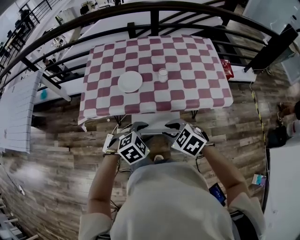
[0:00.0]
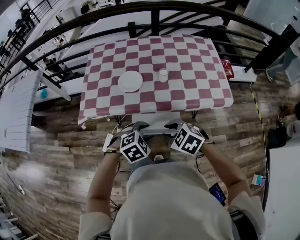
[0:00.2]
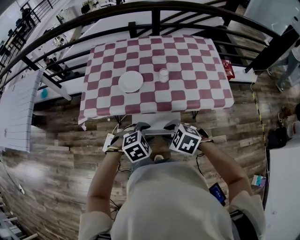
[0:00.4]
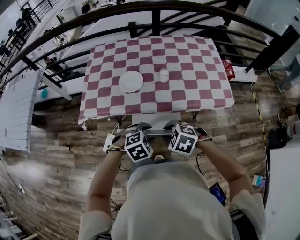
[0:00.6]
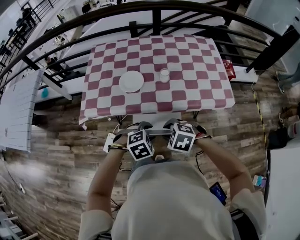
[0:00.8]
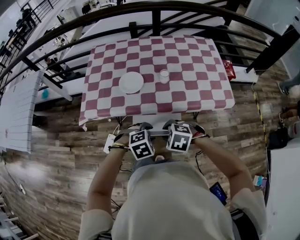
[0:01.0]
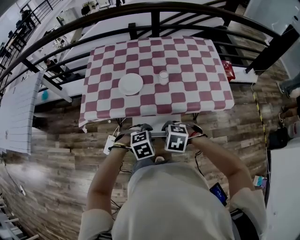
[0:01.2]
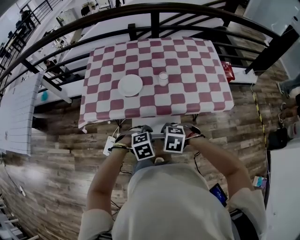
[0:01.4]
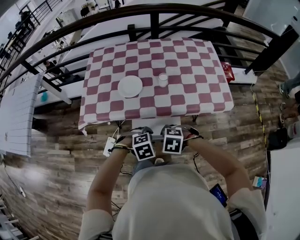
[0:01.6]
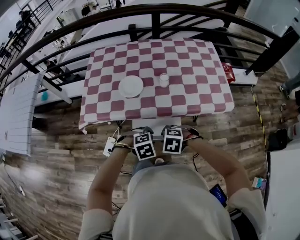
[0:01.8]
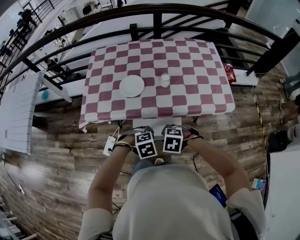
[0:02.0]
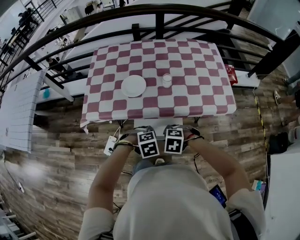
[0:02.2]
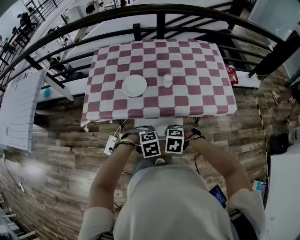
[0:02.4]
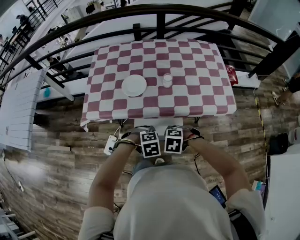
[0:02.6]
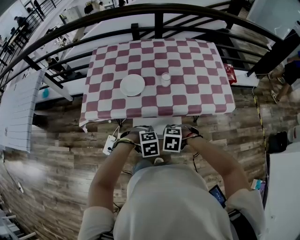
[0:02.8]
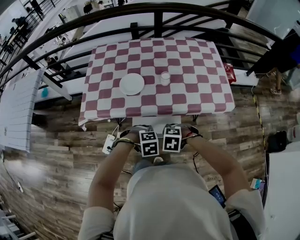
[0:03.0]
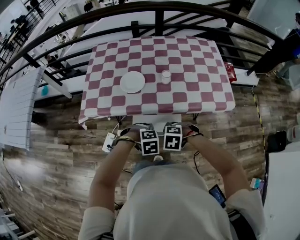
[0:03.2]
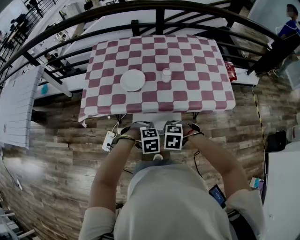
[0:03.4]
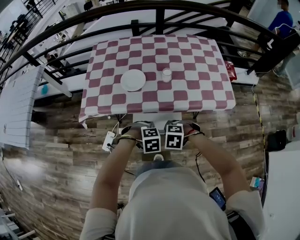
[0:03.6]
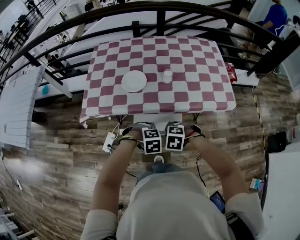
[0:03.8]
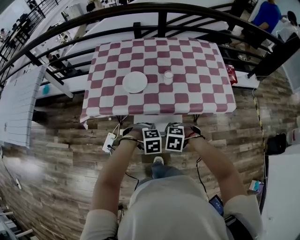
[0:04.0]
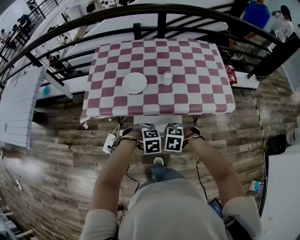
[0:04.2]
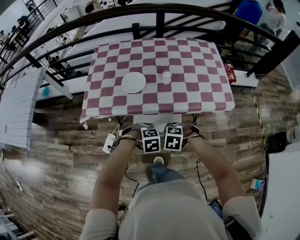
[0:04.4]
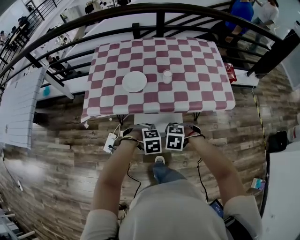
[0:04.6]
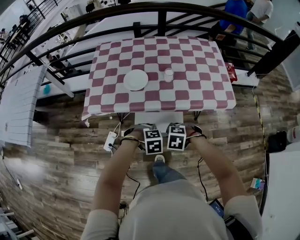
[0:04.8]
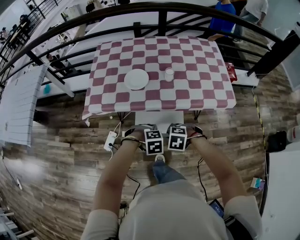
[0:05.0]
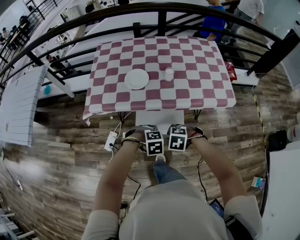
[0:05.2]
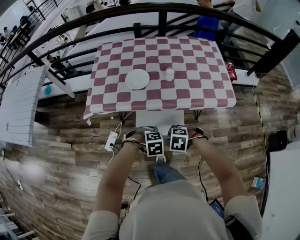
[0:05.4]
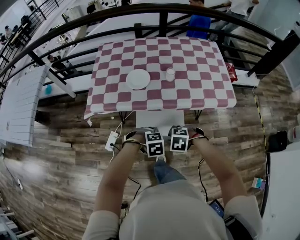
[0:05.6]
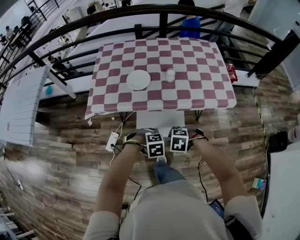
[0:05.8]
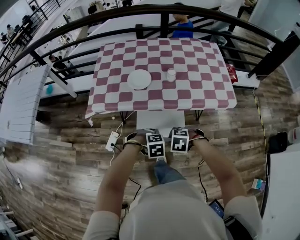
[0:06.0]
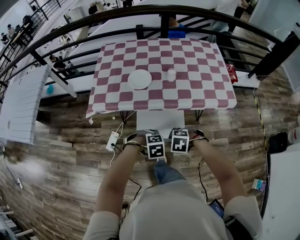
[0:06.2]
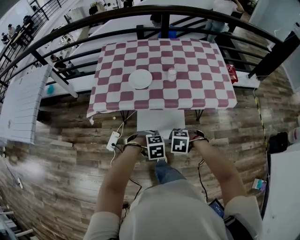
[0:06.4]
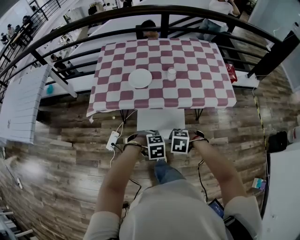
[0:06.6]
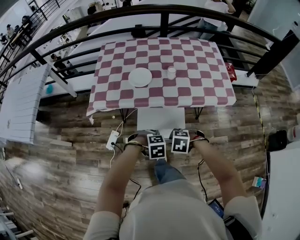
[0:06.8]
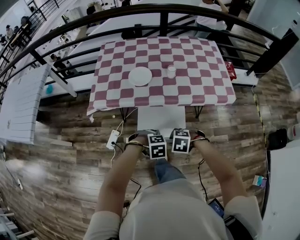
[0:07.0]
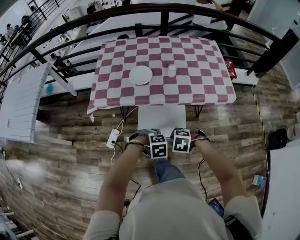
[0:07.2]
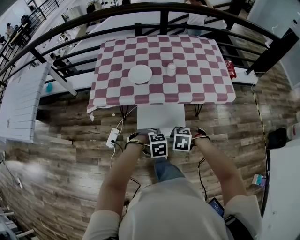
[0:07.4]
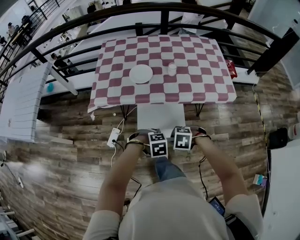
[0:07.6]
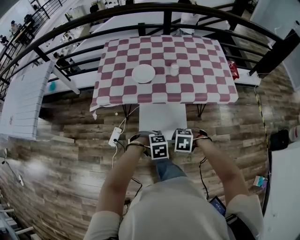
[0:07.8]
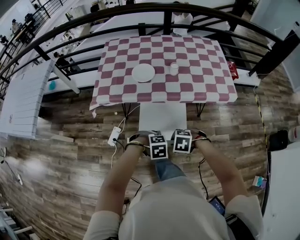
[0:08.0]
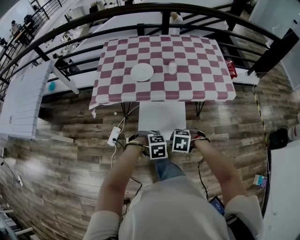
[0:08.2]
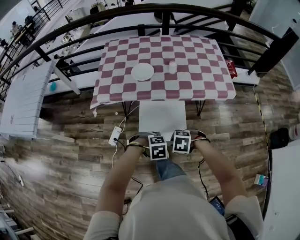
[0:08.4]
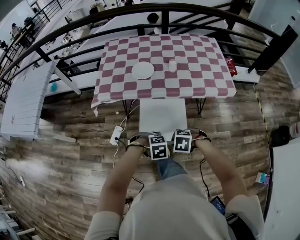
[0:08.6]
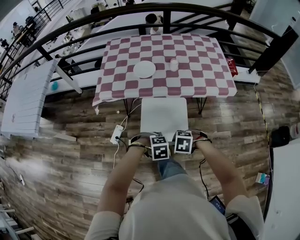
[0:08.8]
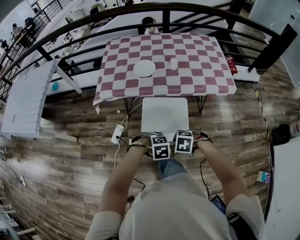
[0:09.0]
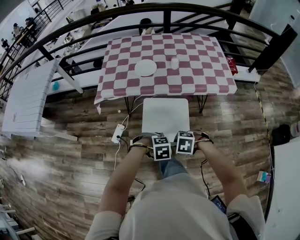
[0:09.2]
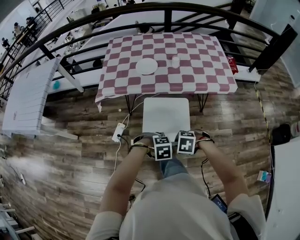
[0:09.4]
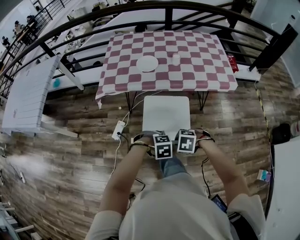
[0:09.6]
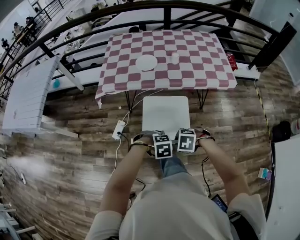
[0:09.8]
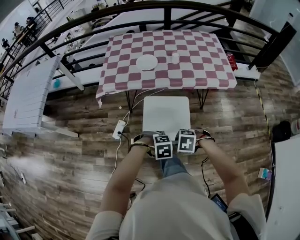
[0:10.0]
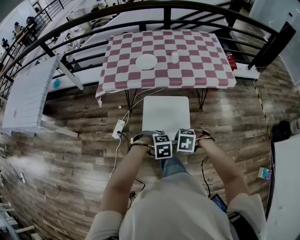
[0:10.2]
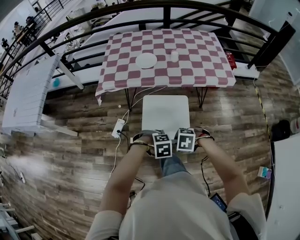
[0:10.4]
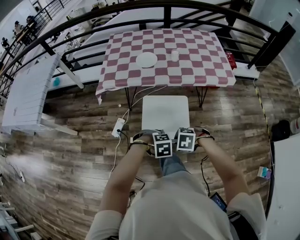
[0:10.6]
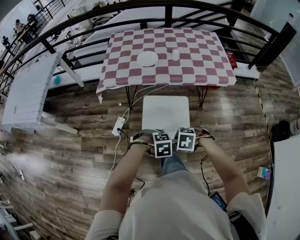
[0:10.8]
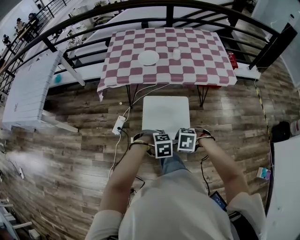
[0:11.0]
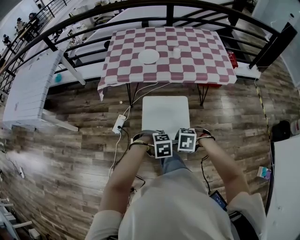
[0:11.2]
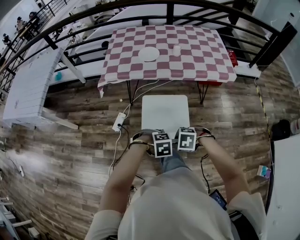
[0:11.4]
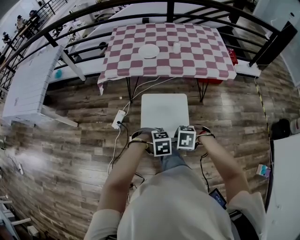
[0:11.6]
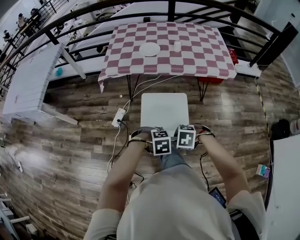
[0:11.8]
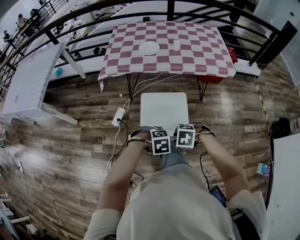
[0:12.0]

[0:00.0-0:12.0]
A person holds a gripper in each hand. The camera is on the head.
0:00.0 to 0:01.6: The grippers both shift downward by approximately 10 cm. The right gripper swivels roughly 30 degrees.
0:01.6 to 0:03.0: The left gripper closes its fingers.
0:03.0 to 0:04.4: The two grippers keep their place.
0:04.4 to 0:06.0: The left gripper shifts by some 5 cm; the right gripper shifts by about 5 cm.
0:06.0 to 0:07.6: The grippers make only small movements.
0:07.6 to 0:09.0: The left gripper moves about 10 cm. Meanwhile the right gripper shifts by roughly 10 cm.
0:09.0 to 0:10.4: The right gripper moves approximately 5 cm, while the left gripper ends up approximately 5 cm from where it was.
0:10.4 to 0:12.0: The right gripper ends up about 10 cm from where it was; the left gripper shifts by about 10 cm.

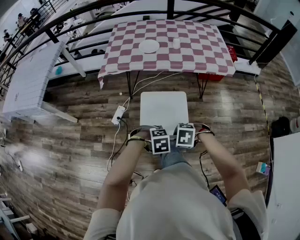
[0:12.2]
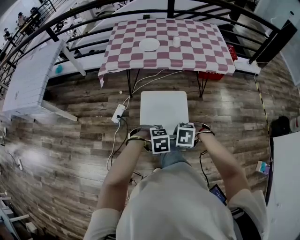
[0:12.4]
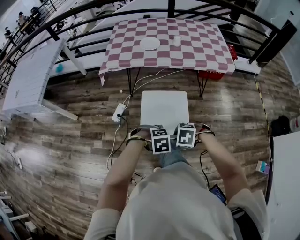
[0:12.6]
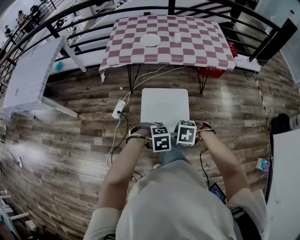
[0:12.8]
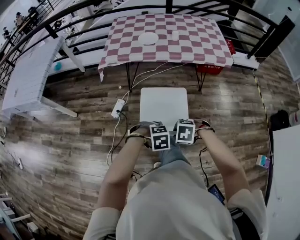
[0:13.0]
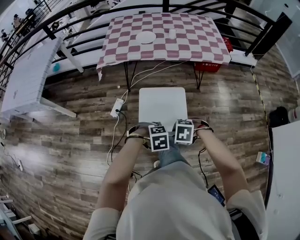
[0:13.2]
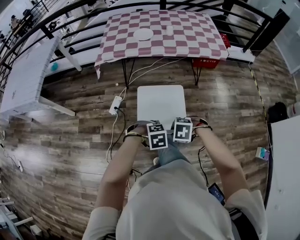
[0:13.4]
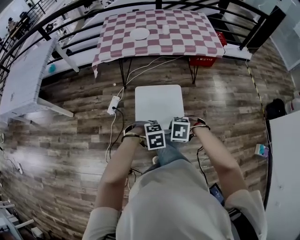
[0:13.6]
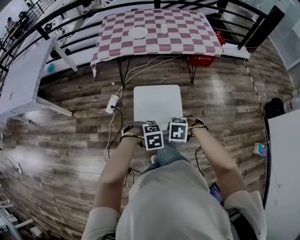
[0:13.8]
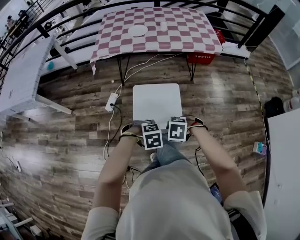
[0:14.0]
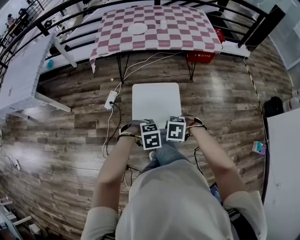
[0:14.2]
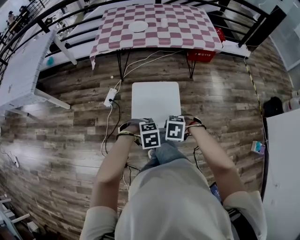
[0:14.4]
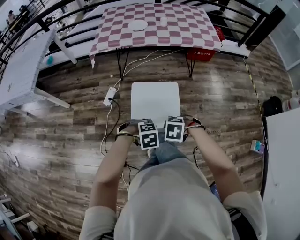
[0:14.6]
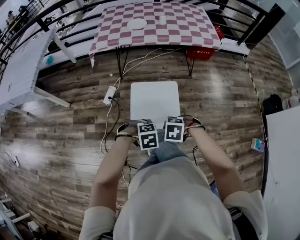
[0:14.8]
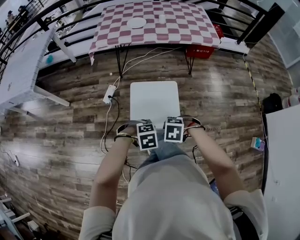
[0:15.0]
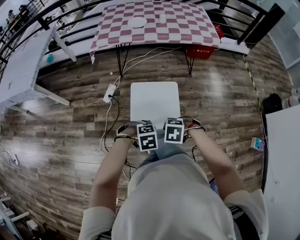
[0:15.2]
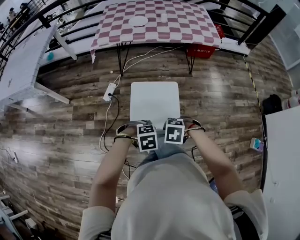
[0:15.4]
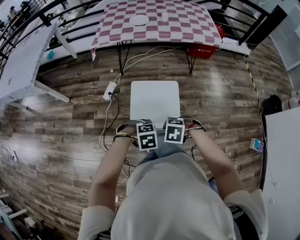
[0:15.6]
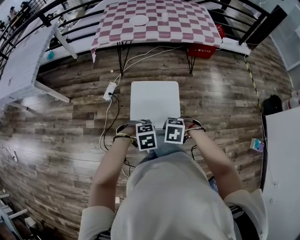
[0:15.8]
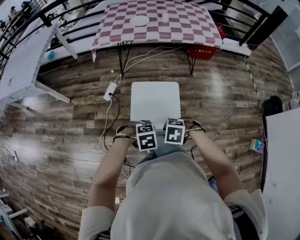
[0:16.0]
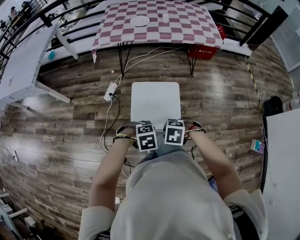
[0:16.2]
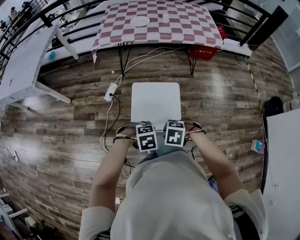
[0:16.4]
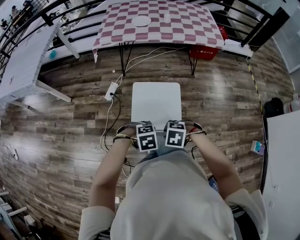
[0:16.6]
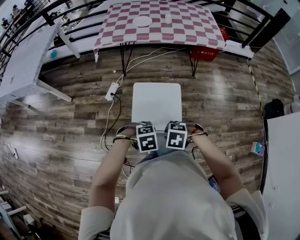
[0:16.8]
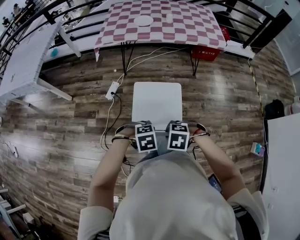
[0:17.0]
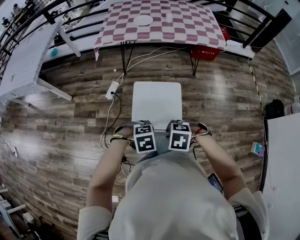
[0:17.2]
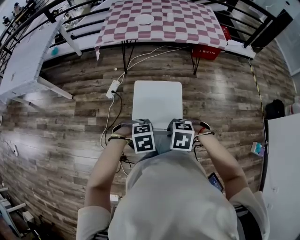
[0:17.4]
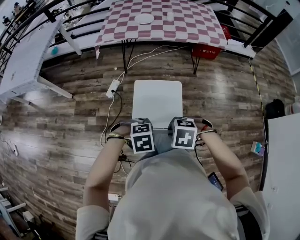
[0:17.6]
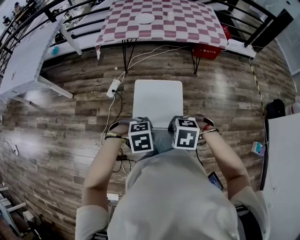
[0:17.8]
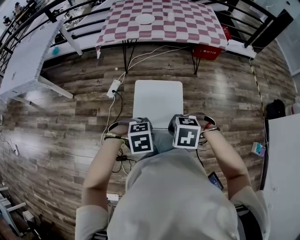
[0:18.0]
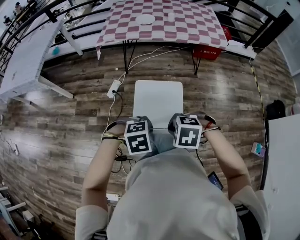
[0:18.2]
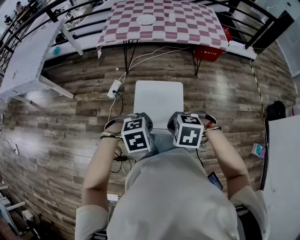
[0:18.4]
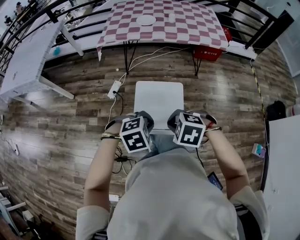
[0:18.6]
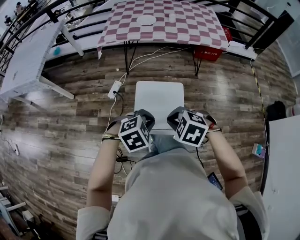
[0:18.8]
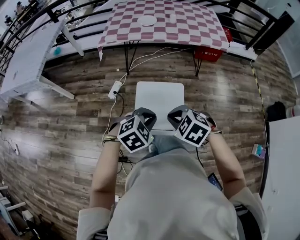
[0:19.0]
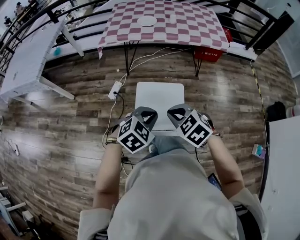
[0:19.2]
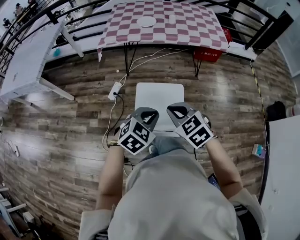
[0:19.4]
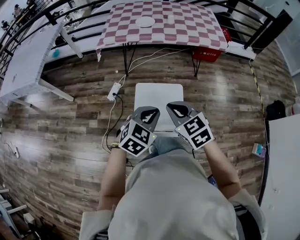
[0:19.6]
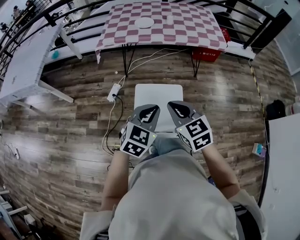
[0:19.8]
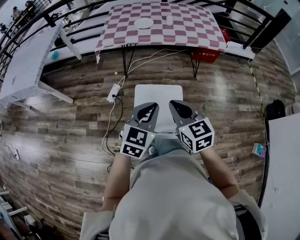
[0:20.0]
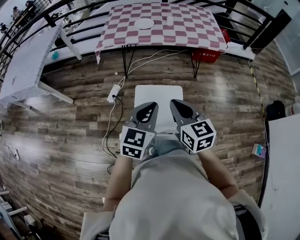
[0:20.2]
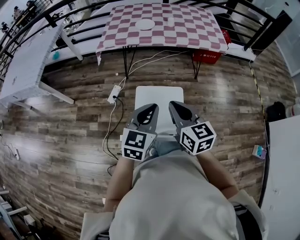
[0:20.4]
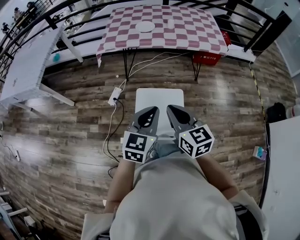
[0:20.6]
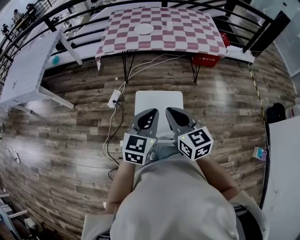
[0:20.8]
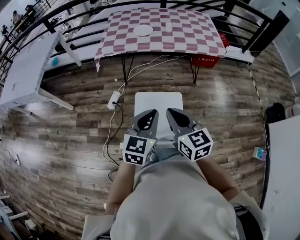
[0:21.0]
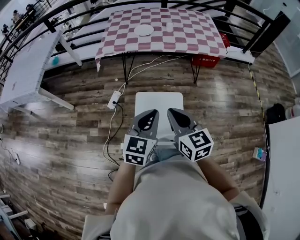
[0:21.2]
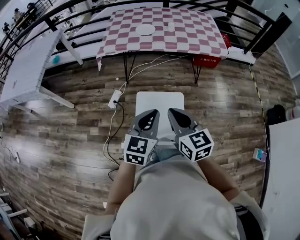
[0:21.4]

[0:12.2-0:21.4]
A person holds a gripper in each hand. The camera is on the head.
0:12.2 to 0:13.8: The right gripper moves about 10 cm. Meanwhile the left gripper shifts by approximately 10 cm.
0:13.8 to 0:15.2: The left gripper moves roughly 10 cm. The right gripper shifts by some 10 cm.
0:15.2 to 0:16.8: The two grippers keep their place.
0:16.8 to 0:18.4: The grippers both shift upward by some 10 cm. The right gripper closes.
0:18.4 to 0:19.8: The right gripper shifts by approximately 10 cm, and tilts its fingers roughly 40 degrees upward; the left gripper ends up roughly 10 cm from where it was, and tips its fingers upward by roughly 40 degrees.

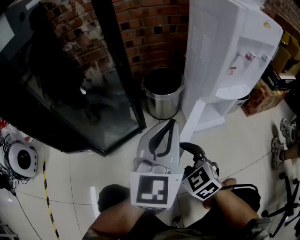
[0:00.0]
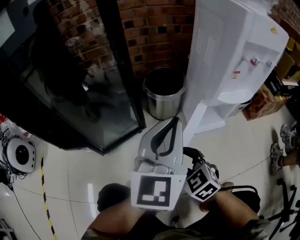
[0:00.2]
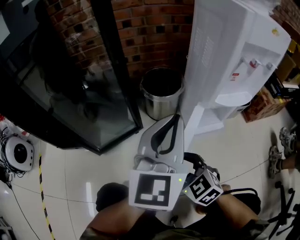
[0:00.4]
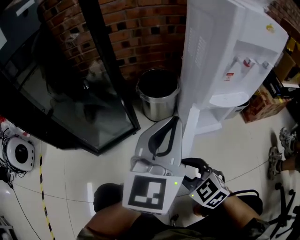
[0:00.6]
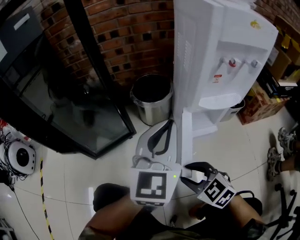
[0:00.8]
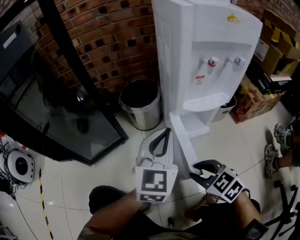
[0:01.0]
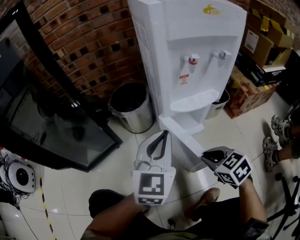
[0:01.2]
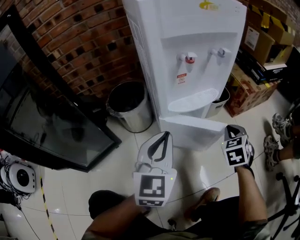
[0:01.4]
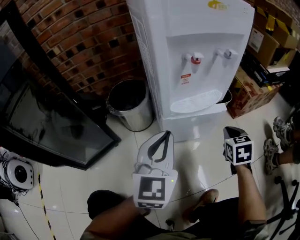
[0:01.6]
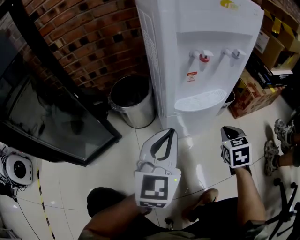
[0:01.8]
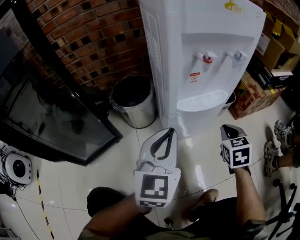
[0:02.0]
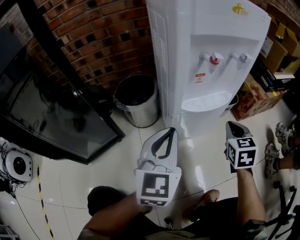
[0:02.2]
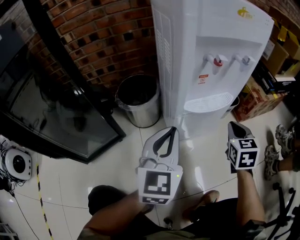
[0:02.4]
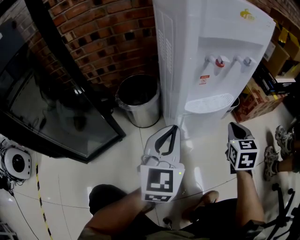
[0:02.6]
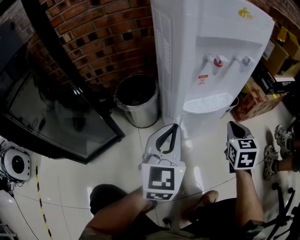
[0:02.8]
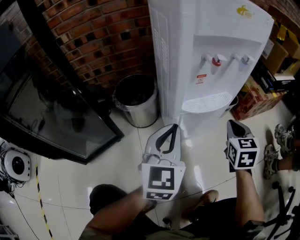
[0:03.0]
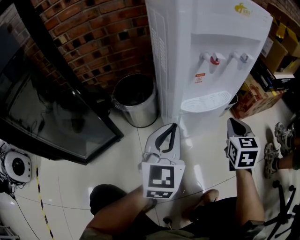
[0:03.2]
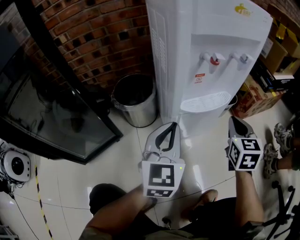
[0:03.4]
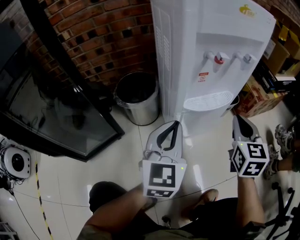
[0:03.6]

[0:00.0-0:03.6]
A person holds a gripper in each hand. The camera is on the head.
0:00.0 to 0:01.8: The left gripper ends up some 20 cm from where it was, while the right gripper changes place by about 40 cm, rotates some 40 degrees, and closes its fingers.
0:01.8 to 0:03.6: The right gripper shifts some 10 cm upward, and swivels some 20 degrees.
